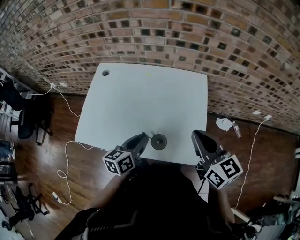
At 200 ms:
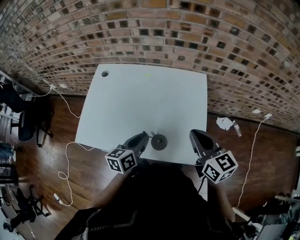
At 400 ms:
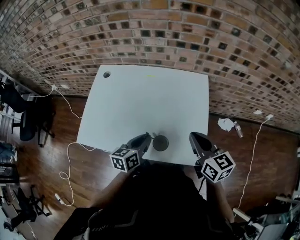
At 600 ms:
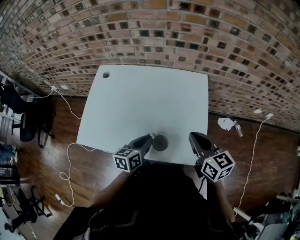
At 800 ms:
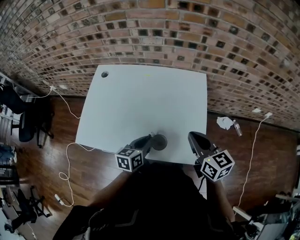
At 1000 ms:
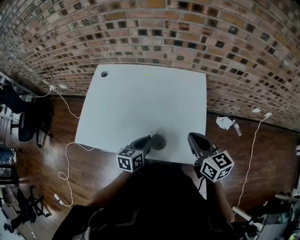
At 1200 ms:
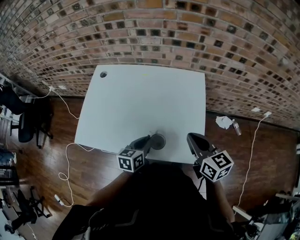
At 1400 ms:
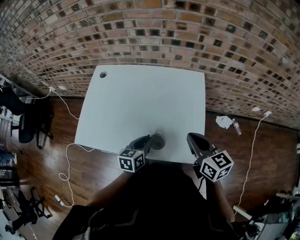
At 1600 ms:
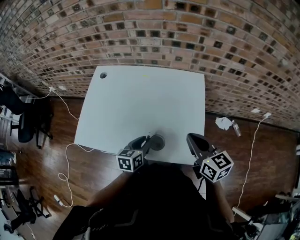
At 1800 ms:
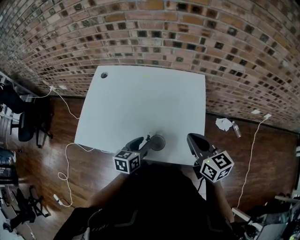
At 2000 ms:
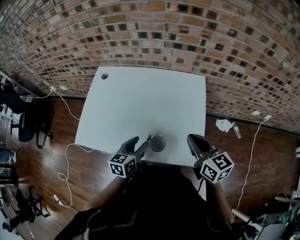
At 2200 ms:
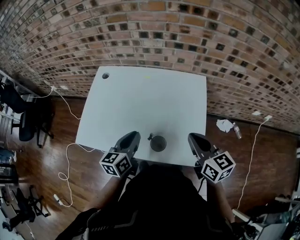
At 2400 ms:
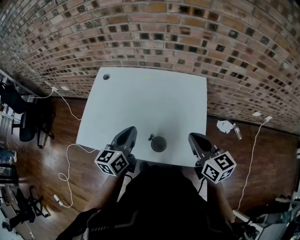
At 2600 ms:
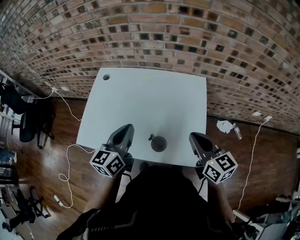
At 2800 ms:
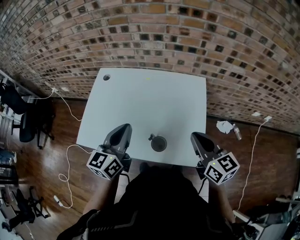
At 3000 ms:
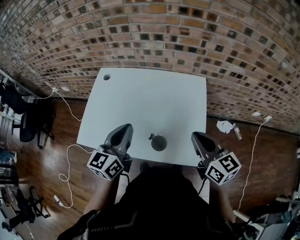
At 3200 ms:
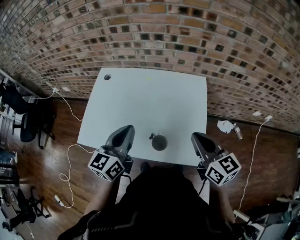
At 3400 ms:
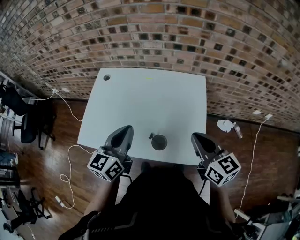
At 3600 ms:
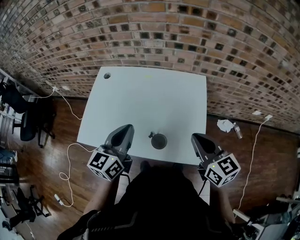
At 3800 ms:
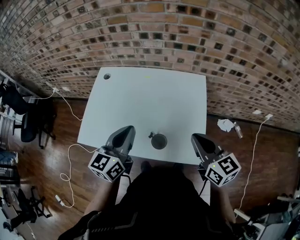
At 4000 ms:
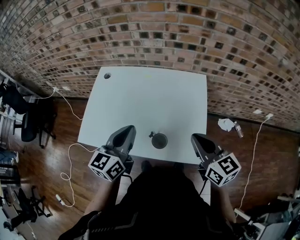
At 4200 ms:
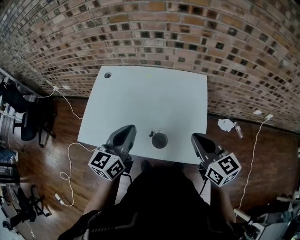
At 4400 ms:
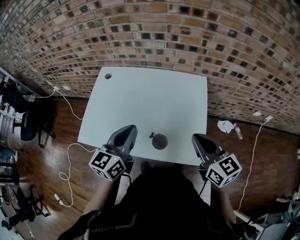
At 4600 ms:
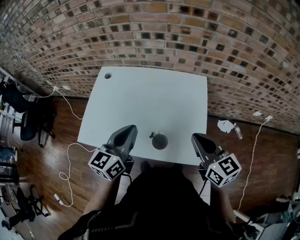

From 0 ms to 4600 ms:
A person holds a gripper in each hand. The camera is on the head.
From 0 ms to 1600 ms: Both grippers travel together downward, approximately 10 cm.
From 1600 ms to 3000 ms: The left gripper goes roughly 20 cm upward, swivels roughly 30 degrees, and closes; the right gripper travels upward by about 5 cm.
From 3000 ms to 4600 ms: There are only small adjustments of the grippers.

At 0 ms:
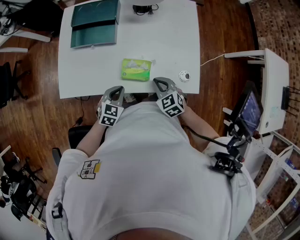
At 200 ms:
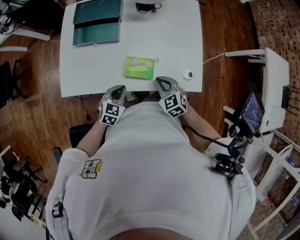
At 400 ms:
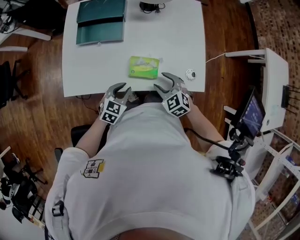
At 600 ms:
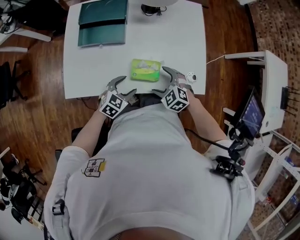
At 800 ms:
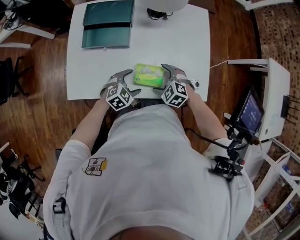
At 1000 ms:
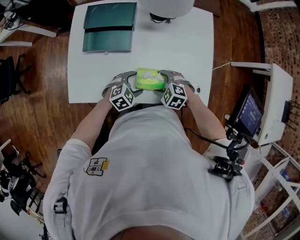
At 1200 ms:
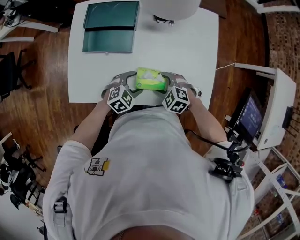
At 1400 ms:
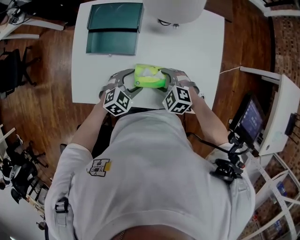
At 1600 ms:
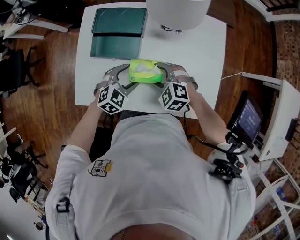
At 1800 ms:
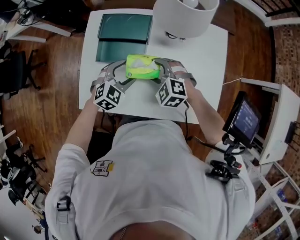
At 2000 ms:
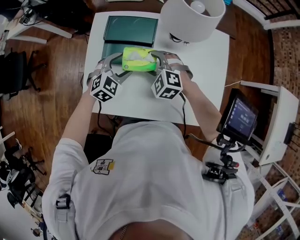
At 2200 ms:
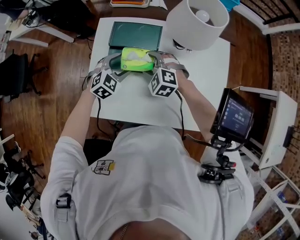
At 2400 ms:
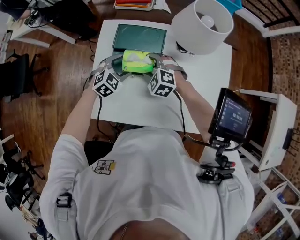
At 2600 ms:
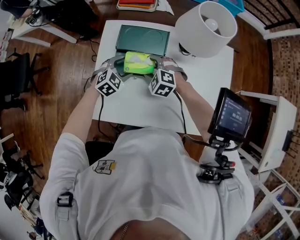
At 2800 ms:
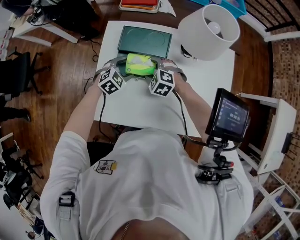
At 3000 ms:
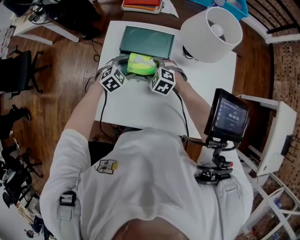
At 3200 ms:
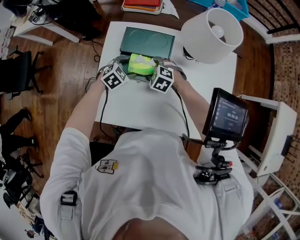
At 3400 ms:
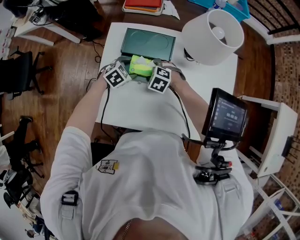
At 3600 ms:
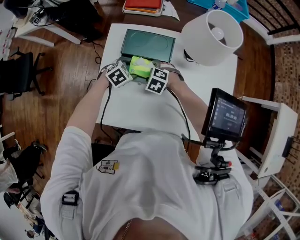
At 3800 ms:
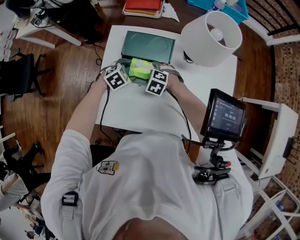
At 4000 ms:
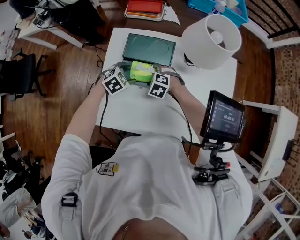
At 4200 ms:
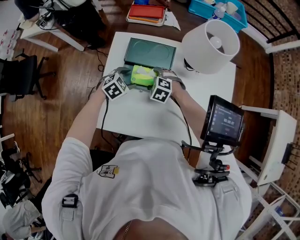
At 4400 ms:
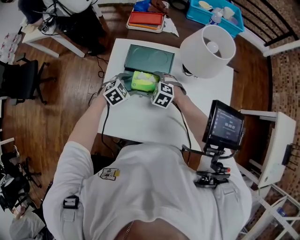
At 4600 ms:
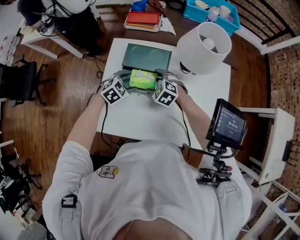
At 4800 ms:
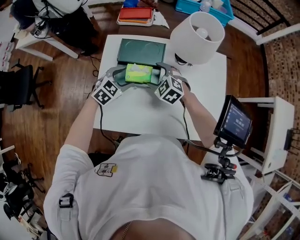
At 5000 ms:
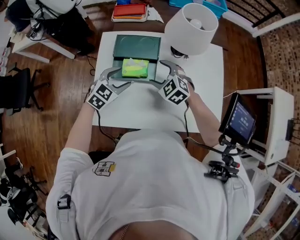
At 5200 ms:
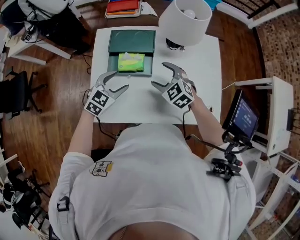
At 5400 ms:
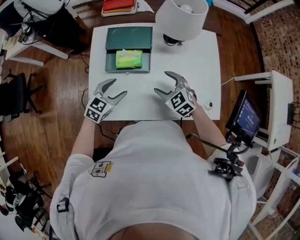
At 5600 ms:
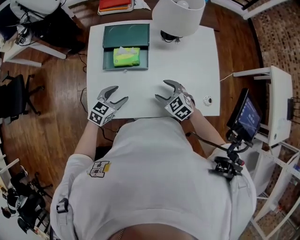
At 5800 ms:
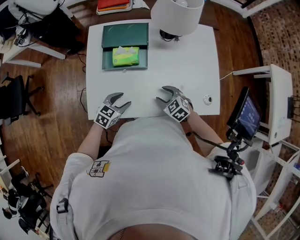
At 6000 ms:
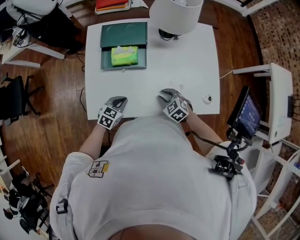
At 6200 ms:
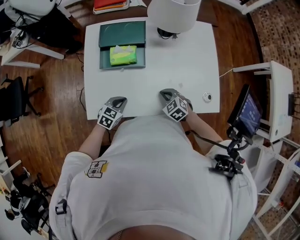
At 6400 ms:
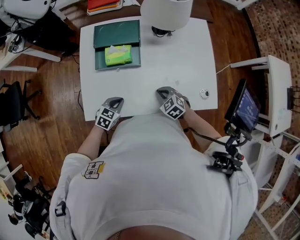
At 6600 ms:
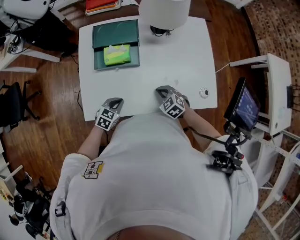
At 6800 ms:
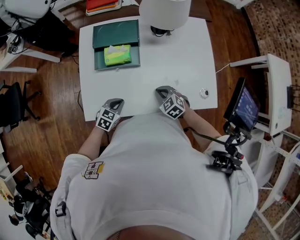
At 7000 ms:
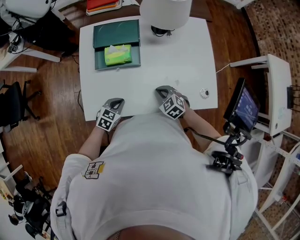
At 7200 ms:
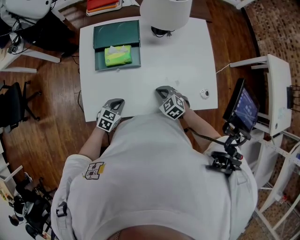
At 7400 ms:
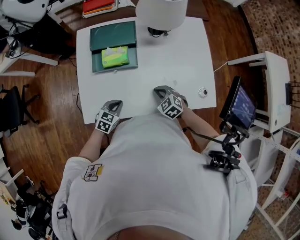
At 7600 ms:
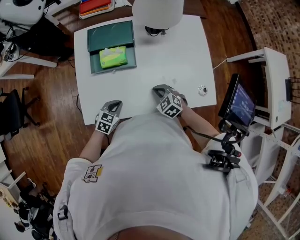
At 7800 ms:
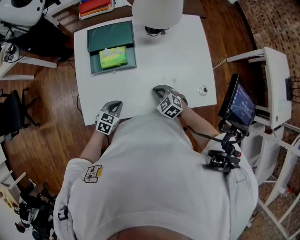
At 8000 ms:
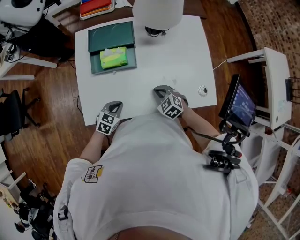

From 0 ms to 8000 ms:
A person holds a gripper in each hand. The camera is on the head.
From 0 ms to 1600 ms: The right gripper shifts by some 20 cm, swivels some 40 degrees, and opens its fingers, while the left gripper changes place by roughly 20 cm, turns by approximately 20 degrees, and opens its fingers.
From 1600 ms to 3200 ms: The grippers both shift forward and to the left by about 20 cm.
From 3200 ms to 4800 ms: Both grippers travel together upward, some 10 cm.
From 4800 ms to 6400 ms: The left gripper moves backward and downward, roughly 25 cm, and closes. The right gripper travels backward, downward and to the right by approximately 25 cm, turns by about 20 degrees, and closes its fingers.
From 6400 ms to 8000 ms: The two grippers keep their place.

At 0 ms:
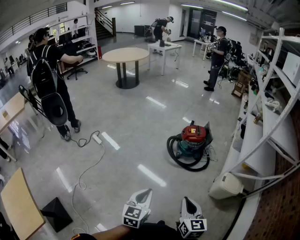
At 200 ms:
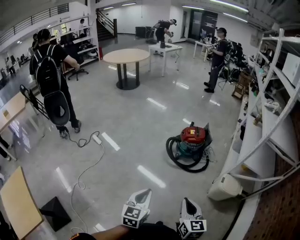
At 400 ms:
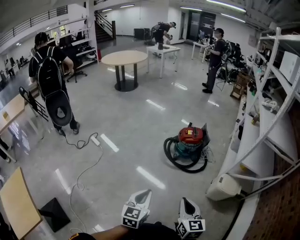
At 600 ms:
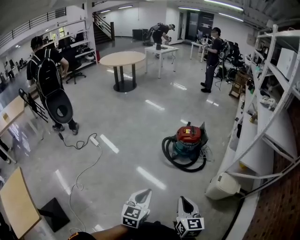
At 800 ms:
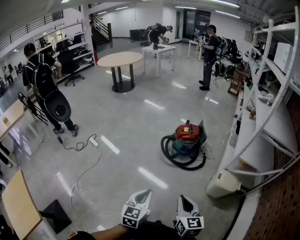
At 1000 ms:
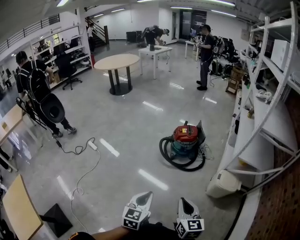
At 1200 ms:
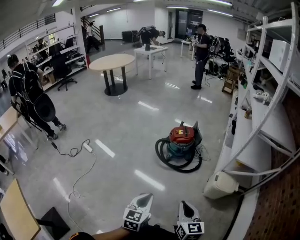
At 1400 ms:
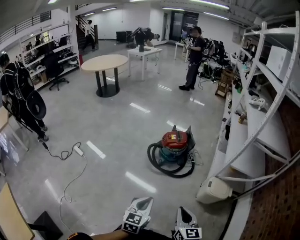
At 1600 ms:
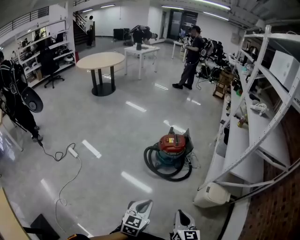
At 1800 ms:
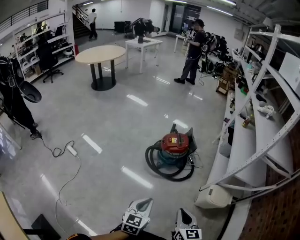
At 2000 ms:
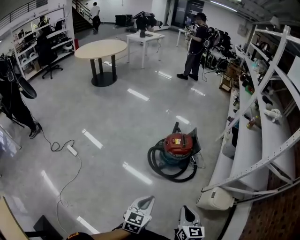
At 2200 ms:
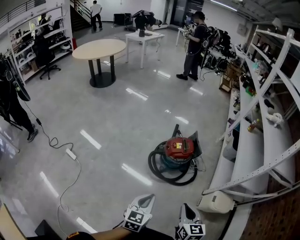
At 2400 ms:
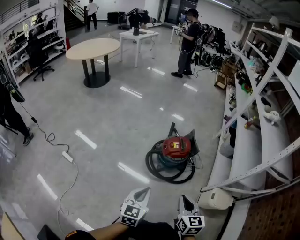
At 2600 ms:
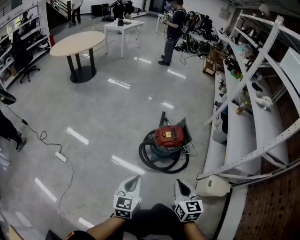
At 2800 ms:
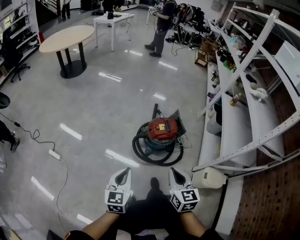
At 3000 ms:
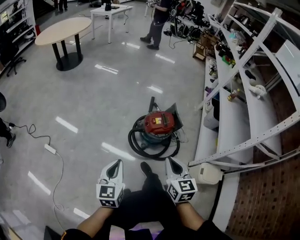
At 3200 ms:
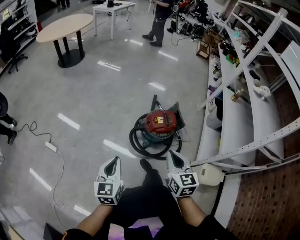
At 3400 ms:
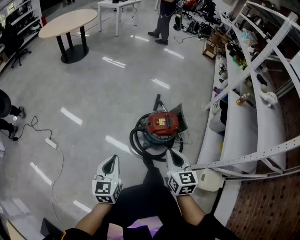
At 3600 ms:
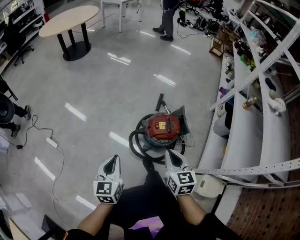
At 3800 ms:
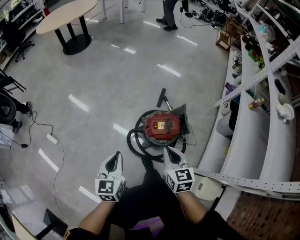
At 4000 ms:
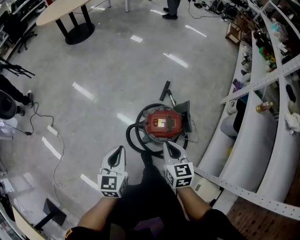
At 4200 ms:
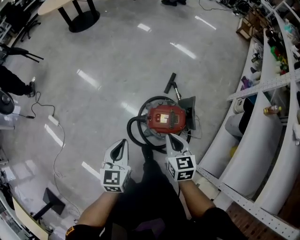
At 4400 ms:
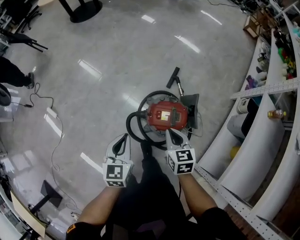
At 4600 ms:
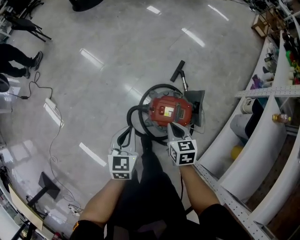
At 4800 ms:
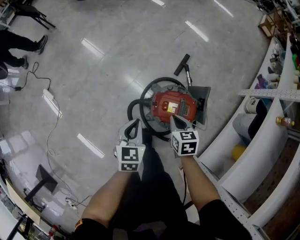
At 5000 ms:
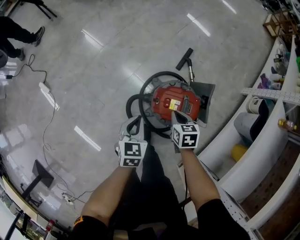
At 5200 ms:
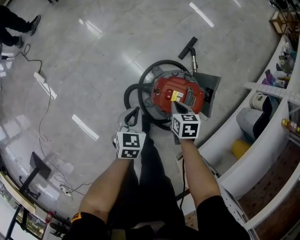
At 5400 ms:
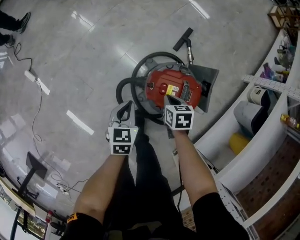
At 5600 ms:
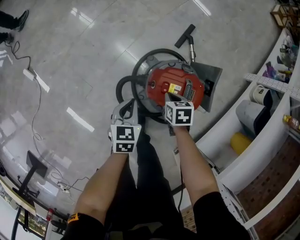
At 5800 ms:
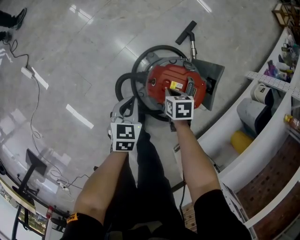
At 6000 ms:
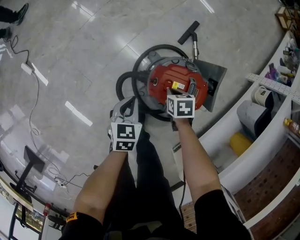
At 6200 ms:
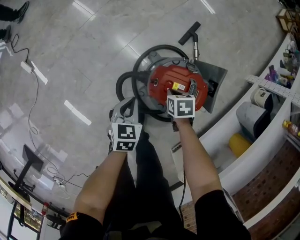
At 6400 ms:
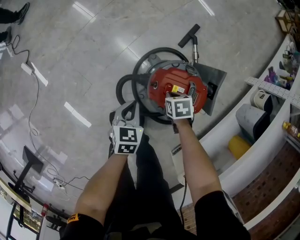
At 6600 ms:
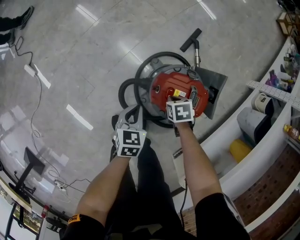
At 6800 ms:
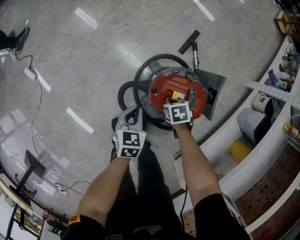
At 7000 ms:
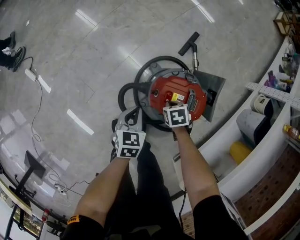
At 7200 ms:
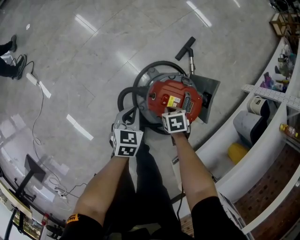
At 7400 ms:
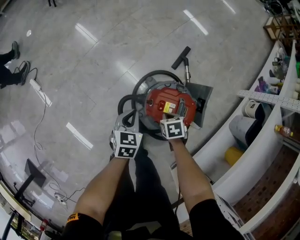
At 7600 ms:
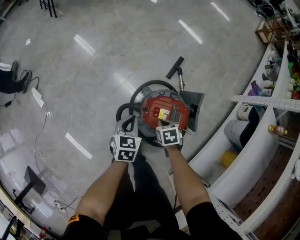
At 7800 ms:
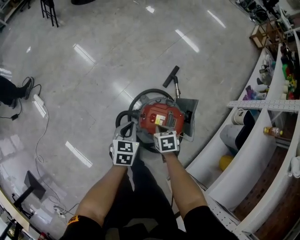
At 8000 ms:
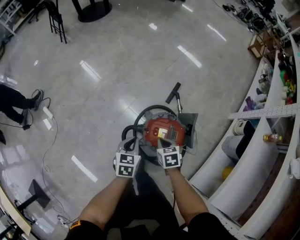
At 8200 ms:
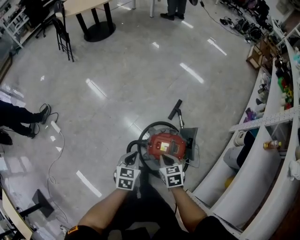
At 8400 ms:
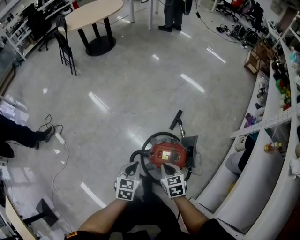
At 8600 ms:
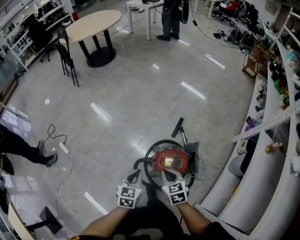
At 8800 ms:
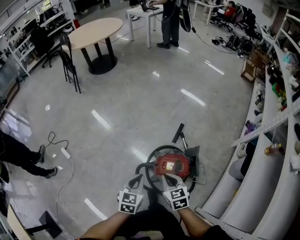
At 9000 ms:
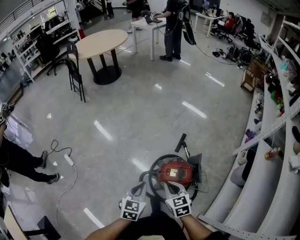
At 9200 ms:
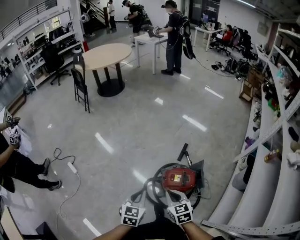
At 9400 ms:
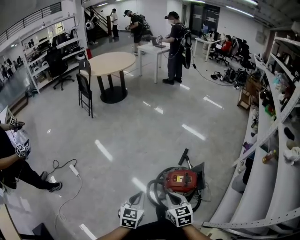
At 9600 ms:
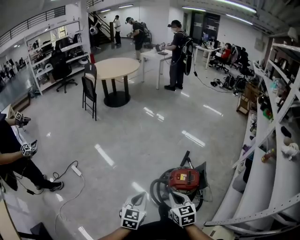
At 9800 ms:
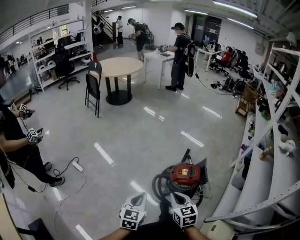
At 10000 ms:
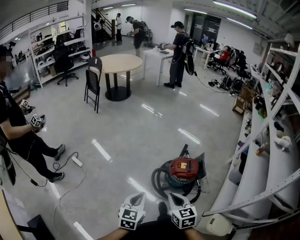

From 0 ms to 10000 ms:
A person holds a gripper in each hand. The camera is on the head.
From 0 ms to 1400 ms: The left gripper travels to the right and forward by some 15 cm. The right gripper is displaced to the right by about 10 cm.
From 1400 ms to 2800 ms: Both grippers travel together forward and to the left, about 35 cm.
From 2800 ms to 4200 ms: The right gripper is displaced forward by approximately 35 cm, and changes its angle by some 20 degrees, while the left gripper moves forward and to the right, about 30 cm.
From 4200 ms to 5800 ms: Both grippers travel together downward, approximately 35 cm. The right gripper tilts its fingers roughly 30 degrees downward, while the left gripper rotates approximately 20 degrees.
From 5800 ms to 7200 ms: There are only small adjustments of the grippers.
From 7200 ms to 8600 ms: The grippers both shift upward by about 30 cm. The right gripper angles its fingers upward, by roughly 40 degrees.
From 8600 ms to 10000 ms: Both grippers travel together backward, to the left and upward, about 35 cm.

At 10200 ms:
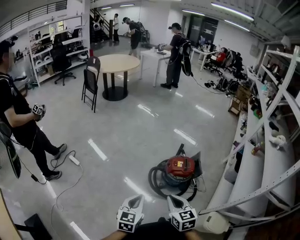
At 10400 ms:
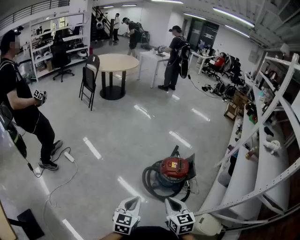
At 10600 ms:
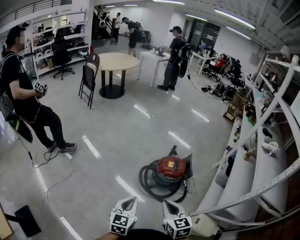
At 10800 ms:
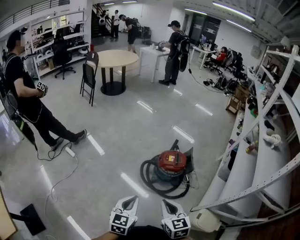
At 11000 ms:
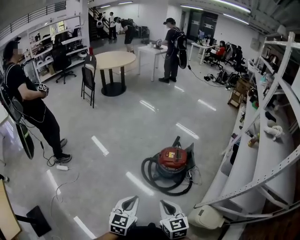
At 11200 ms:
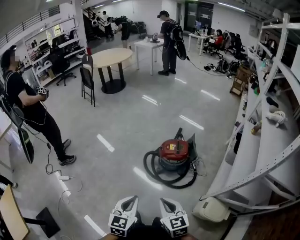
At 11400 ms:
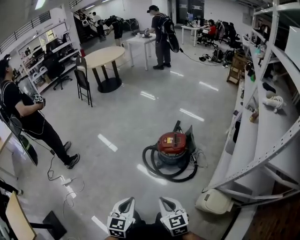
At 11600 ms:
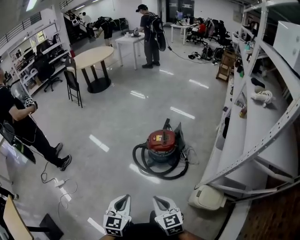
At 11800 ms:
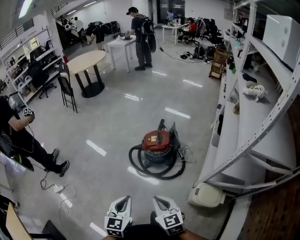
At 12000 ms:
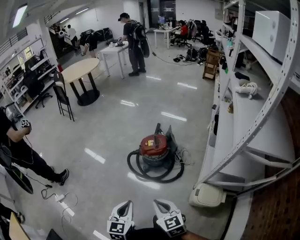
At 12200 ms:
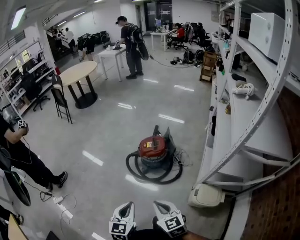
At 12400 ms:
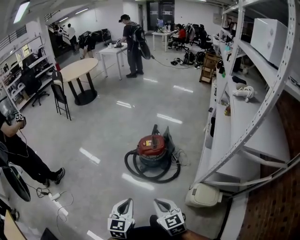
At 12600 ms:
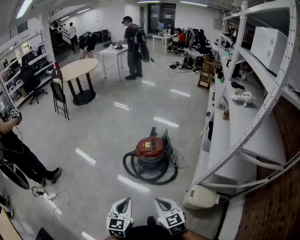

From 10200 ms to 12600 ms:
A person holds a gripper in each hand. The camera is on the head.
From 10200 ms to 11400 ms: Both grippers move backward and to the right, some 20 cm.
